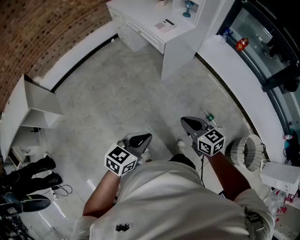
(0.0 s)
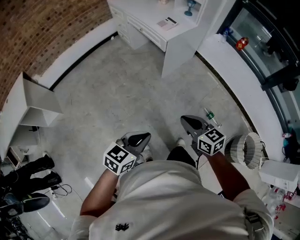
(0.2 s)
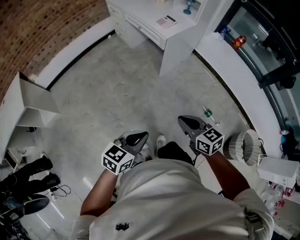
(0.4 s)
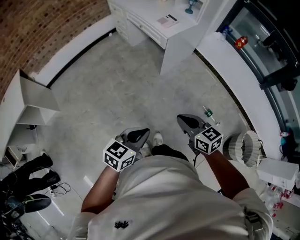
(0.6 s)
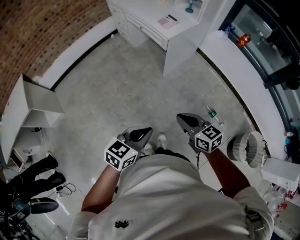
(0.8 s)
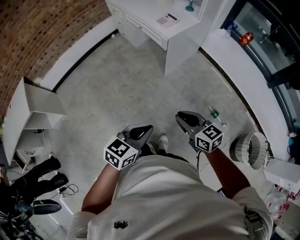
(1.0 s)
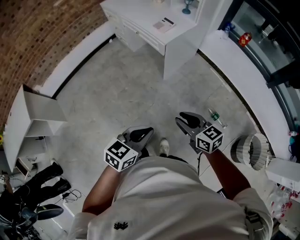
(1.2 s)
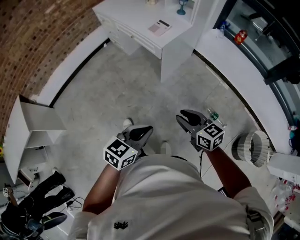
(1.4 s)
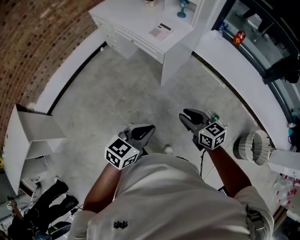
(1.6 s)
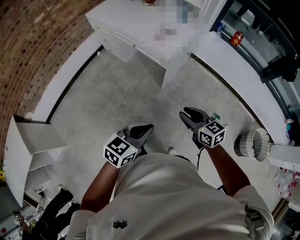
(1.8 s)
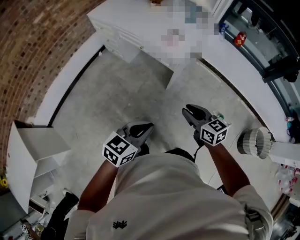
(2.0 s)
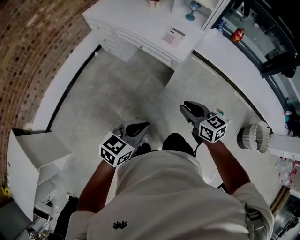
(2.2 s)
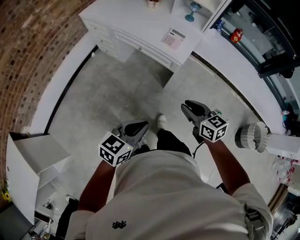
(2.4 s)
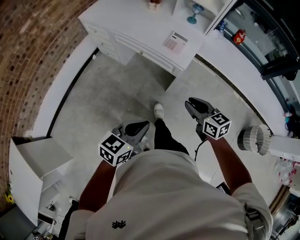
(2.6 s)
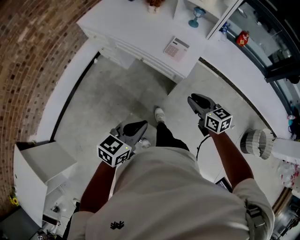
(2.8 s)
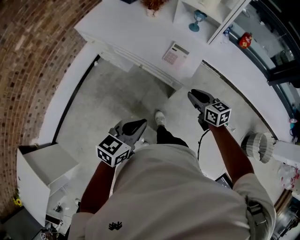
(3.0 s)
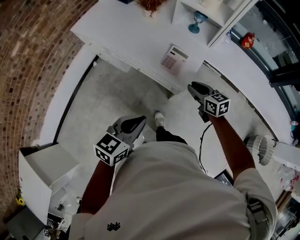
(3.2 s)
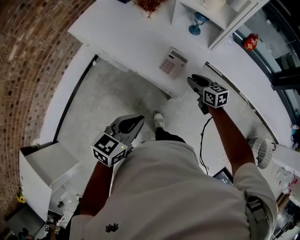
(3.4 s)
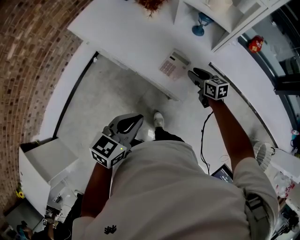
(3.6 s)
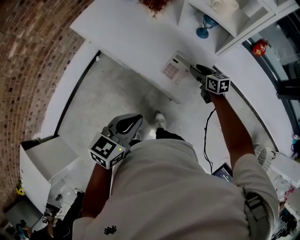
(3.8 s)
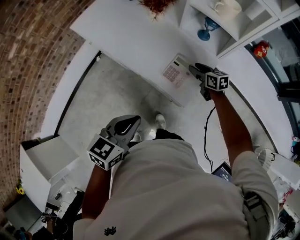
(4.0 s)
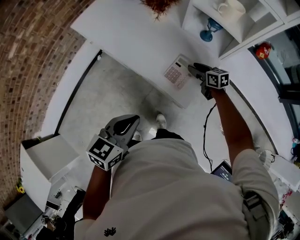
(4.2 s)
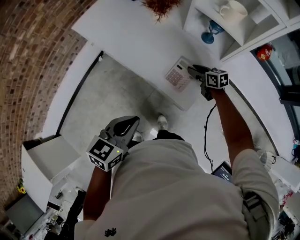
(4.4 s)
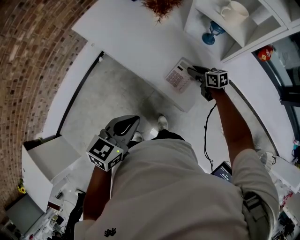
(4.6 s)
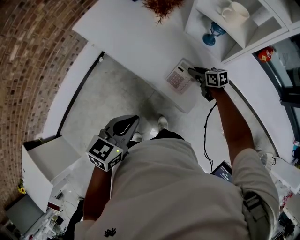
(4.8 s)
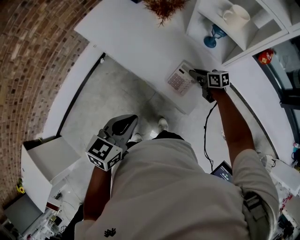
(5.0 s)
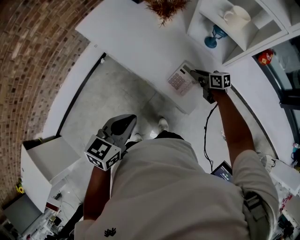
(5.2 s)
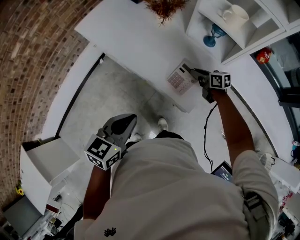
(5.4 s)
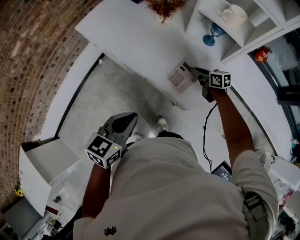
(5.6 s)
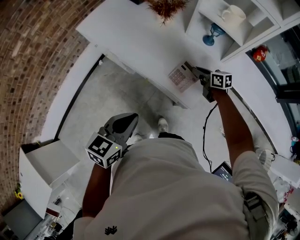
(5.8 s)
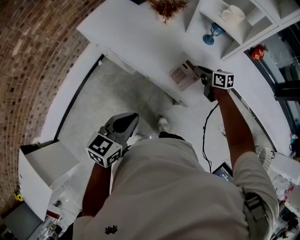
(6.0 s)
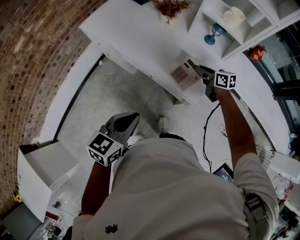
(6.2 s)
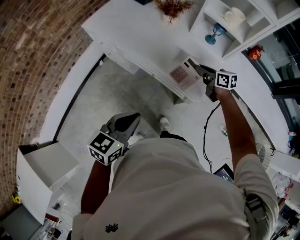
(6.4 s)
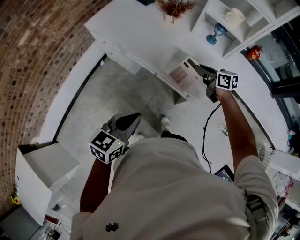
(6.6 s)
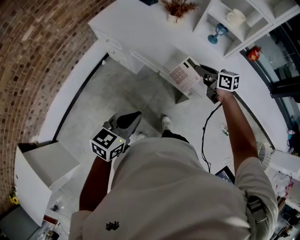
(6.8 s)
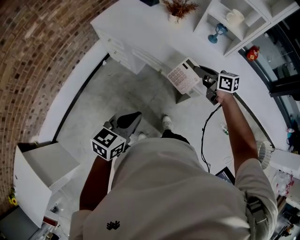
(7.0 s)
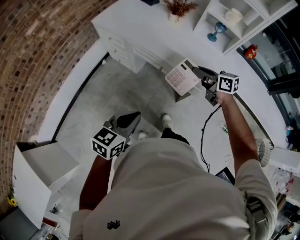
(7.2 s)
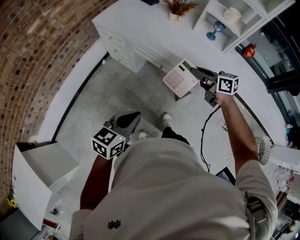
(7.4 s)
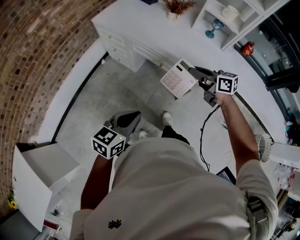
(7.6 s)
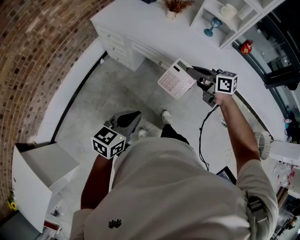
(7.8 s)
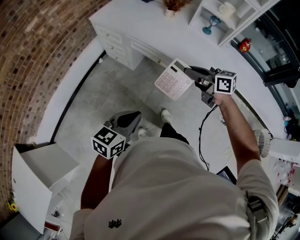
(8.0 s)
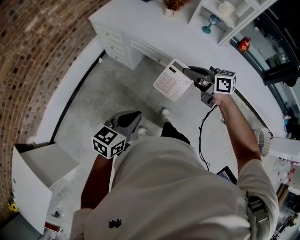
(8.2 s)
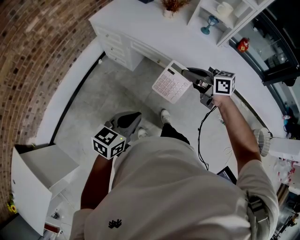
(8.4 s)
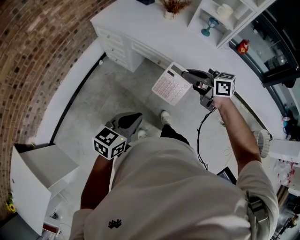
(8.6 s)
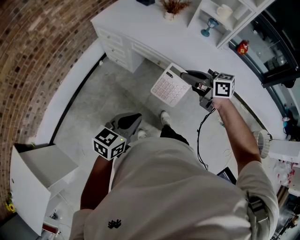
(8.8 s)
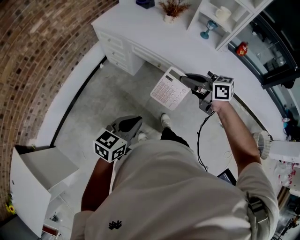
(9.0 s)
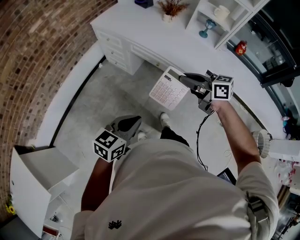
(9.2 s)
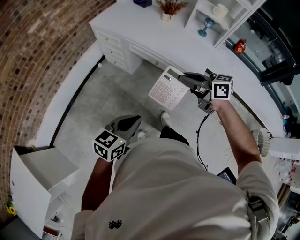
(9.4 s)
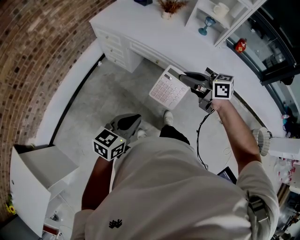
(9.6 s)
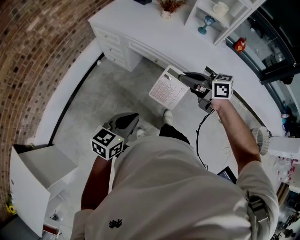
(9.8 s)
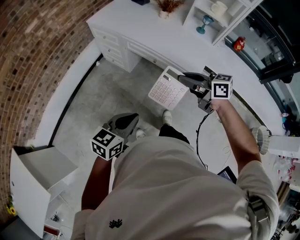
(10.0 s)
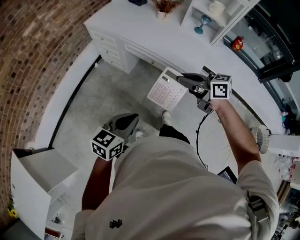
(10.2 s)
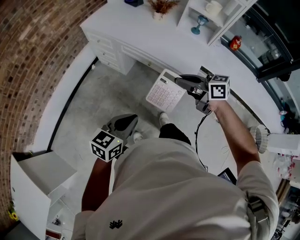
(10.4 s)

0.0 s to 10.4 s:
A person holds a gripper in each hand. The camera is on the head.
0.0 to 1.4 s: Both grippers move forward, some 15 cm. The right gripper opens.
1.4 to 3.0 s: The two grippers travel together, forward and to the left, approximately 40 cm. The right gripper rotates about 20 degrees.
3.0 to 4.4 s: The left gripper heads forward, covering about 20 cm; the right gripper goes approximately 30 cm forward and downward.
4.4 to 6.0 s: The right gripper is displaced upward by roughly 5 cm, and closes its fingers, while the left gripper shifts approximately 5 cm to the left.
6.0 to 7.4 s: The left gripper travels backward and to the left by some 20 cm. Meanwhile the right gripper moves backward, to the left and upward, some 25 cm.
7.4 to 9.0 s: The left gripper travels backward by roughly 5 cm. The right gripper goes some 15 cm backward, to the left and upward.
9.0 to 10.4 s: The grippers move only a little.

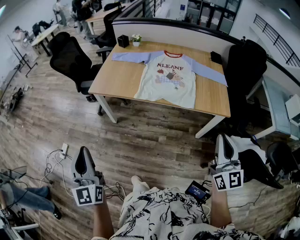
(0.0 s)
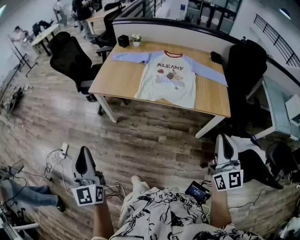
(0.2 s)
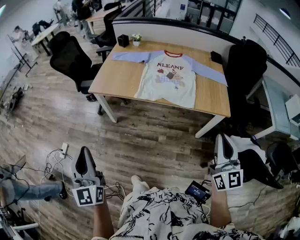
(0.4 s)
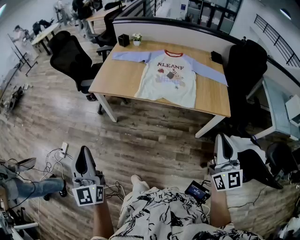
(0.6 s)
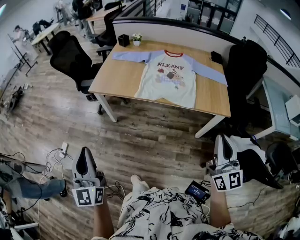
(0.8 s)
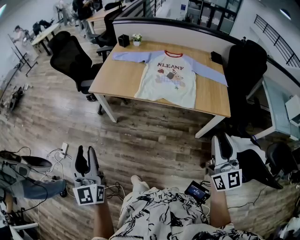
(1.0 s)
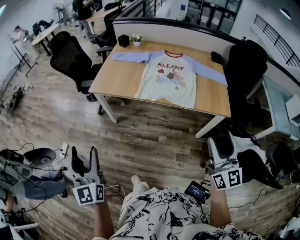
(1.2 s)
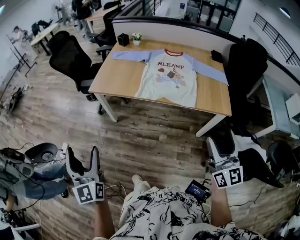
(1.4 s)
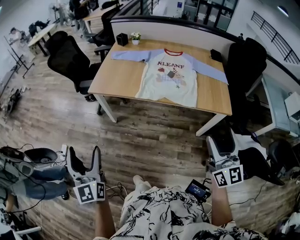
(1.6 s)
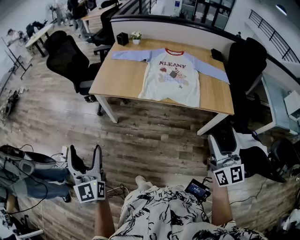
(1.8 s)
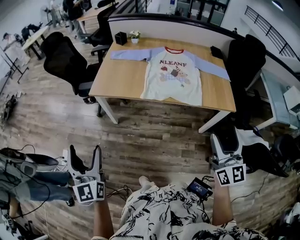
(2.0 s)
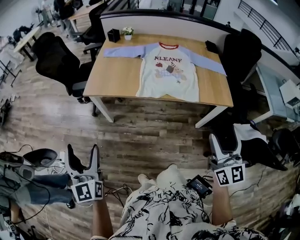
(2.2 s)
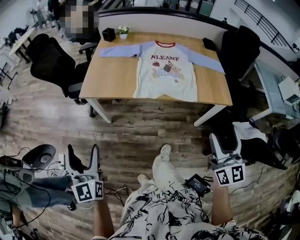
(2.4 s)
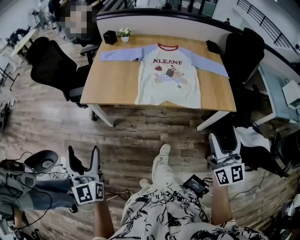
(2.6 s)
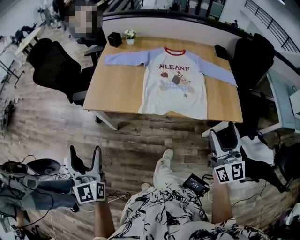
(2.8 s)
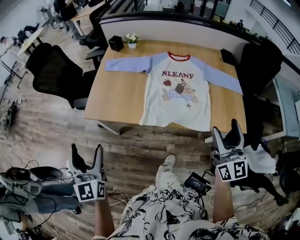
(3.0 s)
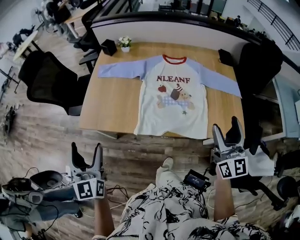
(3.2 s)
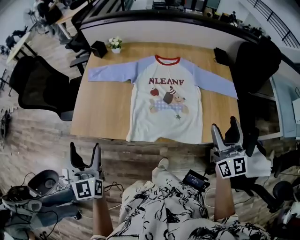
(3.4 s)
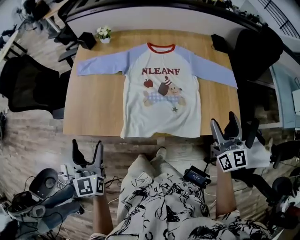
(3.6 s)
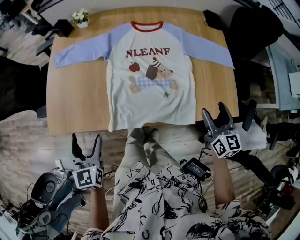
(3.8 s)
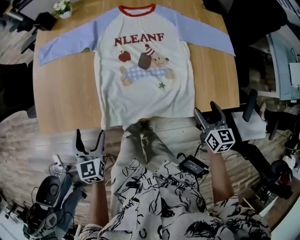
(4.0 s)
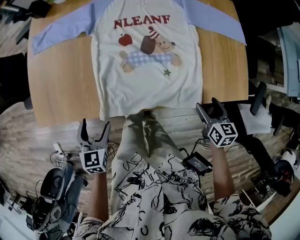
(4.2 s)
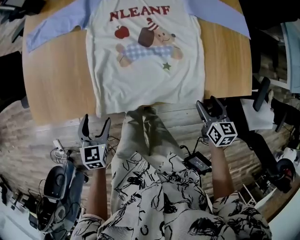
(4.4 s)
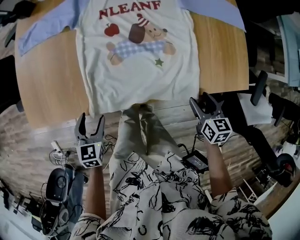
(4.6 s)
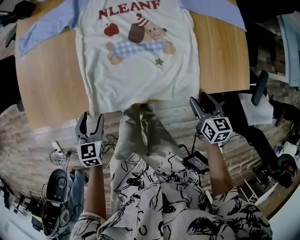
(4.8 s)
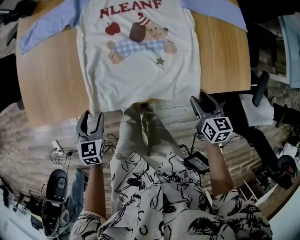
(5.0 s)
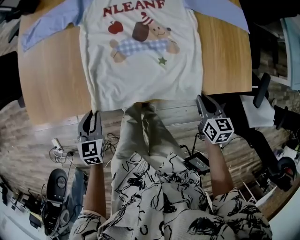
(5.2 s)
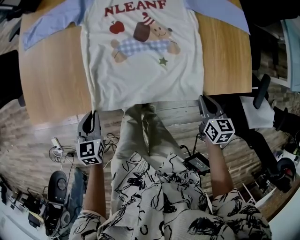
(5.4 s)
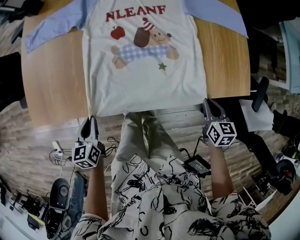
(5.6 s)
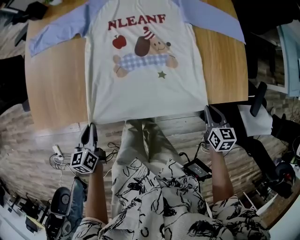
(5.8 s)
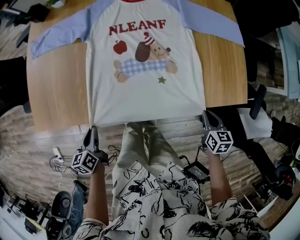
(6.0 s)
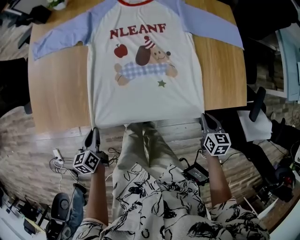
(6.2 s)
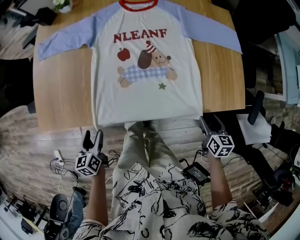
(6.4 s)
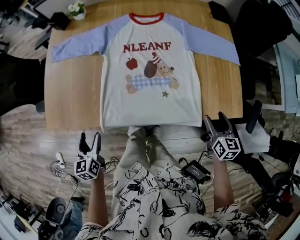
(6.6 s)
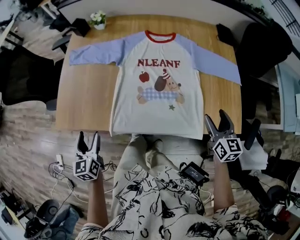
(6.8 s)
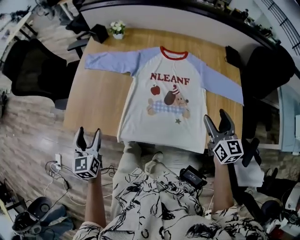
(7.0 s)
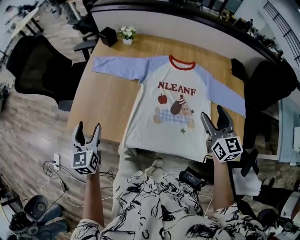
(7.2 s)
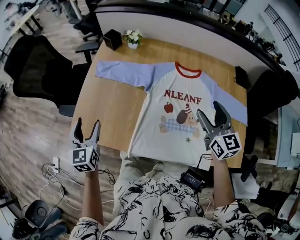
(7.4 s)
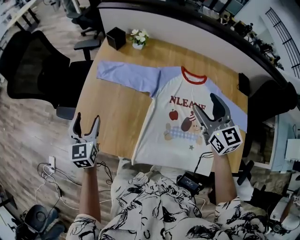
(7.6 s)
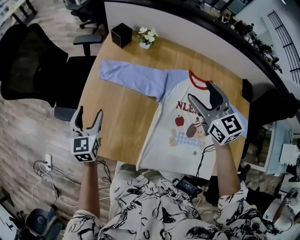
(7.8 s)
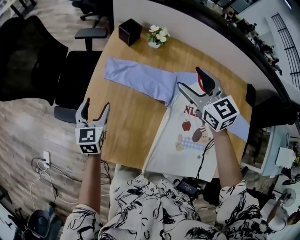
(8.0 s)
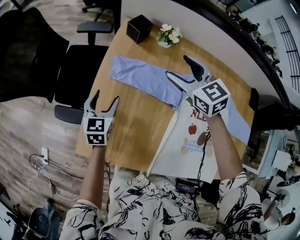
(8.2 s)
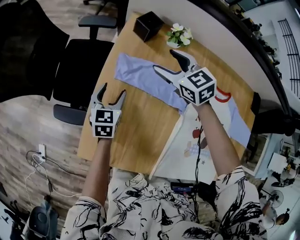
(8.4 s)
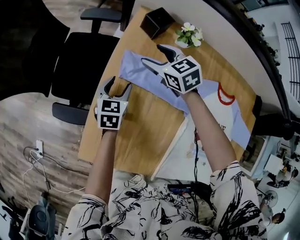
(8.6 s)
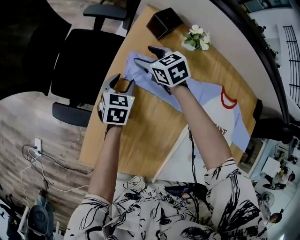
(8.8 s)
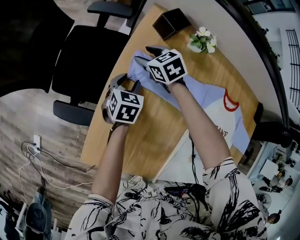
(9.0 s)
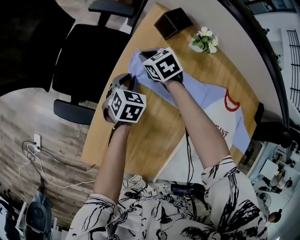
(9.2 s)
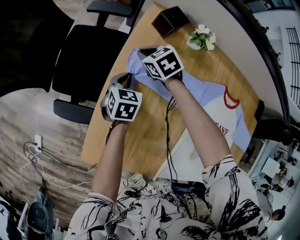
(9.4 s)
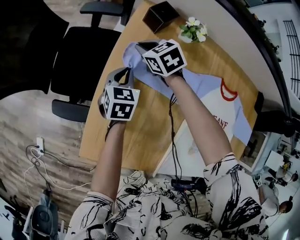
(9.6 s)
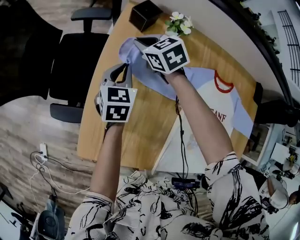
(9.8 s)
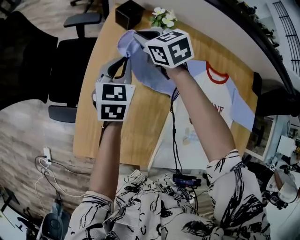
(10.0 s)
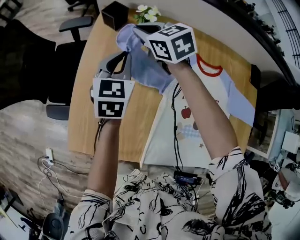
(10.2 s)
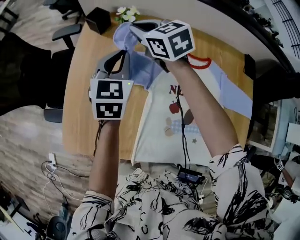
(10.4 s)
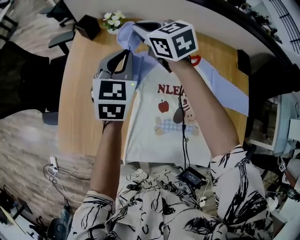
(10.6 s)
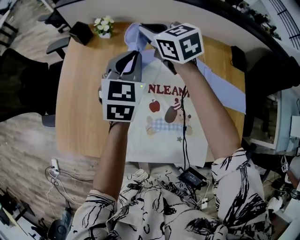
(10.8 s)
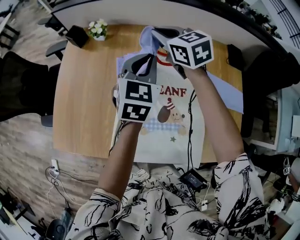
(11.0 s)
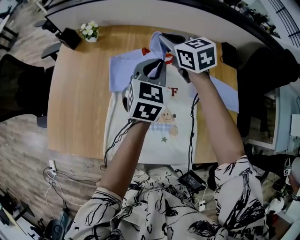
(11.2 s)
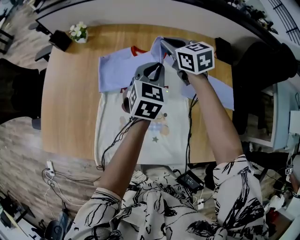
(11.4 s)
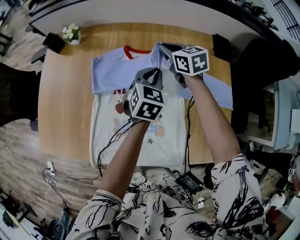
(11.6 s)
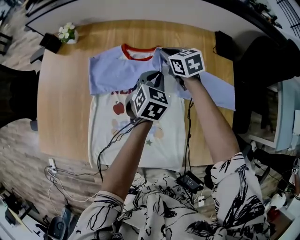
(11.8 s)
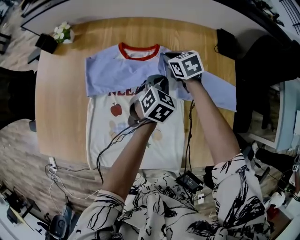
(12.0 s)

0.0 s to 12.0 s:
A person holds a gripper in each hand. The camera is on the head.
0.0 to 1.6 s: The right gripper opens its fingers, while the left gripper opens.
1.6 to 3.0 s: The grippers both shift forward by some 25 cm.
3.0 to 4.4 s: The left gripper heads downward, forward and to the right, covering about 40 cm, and points its fingers some 40 degrees further downward. The right gripper goes some 40 cm downward, and tilts its fingers about 50 degrees downward.
4.4 to 6.0 s: The left gripper turns by about 40 degrees, and closes up. Meanwhile the right gripper closes.
6.0 to 7.6 s: The right gripper ends up approximately 60 cm from where it was, angles its fingers upward, by about 30 degrees, and opens. The left gripper shifts by approximately 35 cm, swivels some 40 degrees, and opens its fingers.
7.6 to 9.0 s: The right gripper shifts some 60 cm forward, to the left and downward, and points its fingers about 40 degrees further downward; the left gripper travels forward and downward by roughly 35 cm, and swivels about 30 degrees.
9.0 to 10.4 s: The grippers both shift upward, to the right and backward by roughly 35 cm. The right gripper rotates approximately 30 degrees, and closes. Meanwhile the left gripper turns by approximately 30 degrees, and closes up.
10.4 to 12.0 s: The two grippers travel together, to the right, roughly 50 cm. The left gripper swivels some 30 degrees. Meanwhile the right gripper heads downward, covering approximately 20 cm, and turns by about 30 degrees.

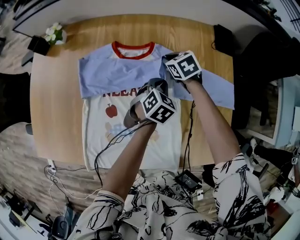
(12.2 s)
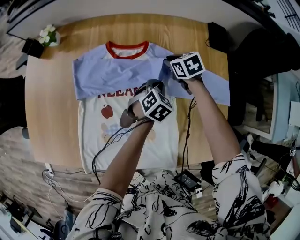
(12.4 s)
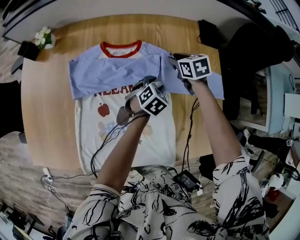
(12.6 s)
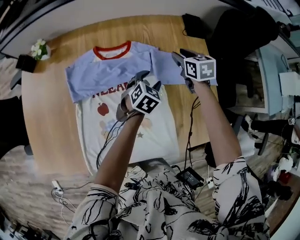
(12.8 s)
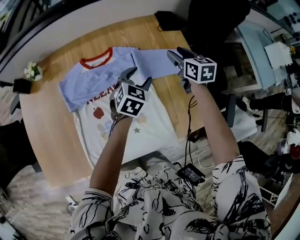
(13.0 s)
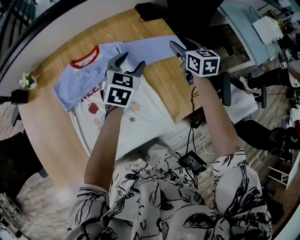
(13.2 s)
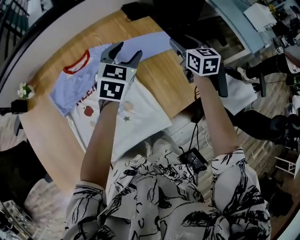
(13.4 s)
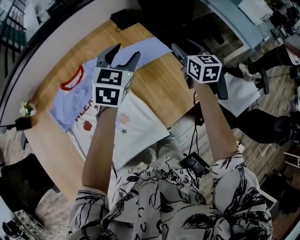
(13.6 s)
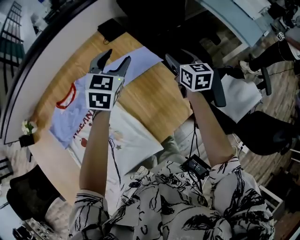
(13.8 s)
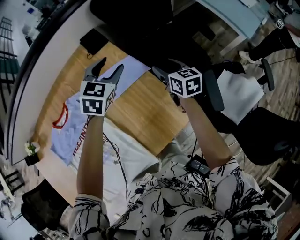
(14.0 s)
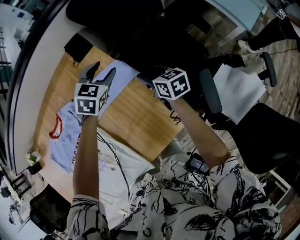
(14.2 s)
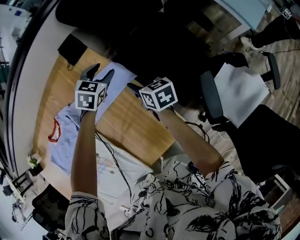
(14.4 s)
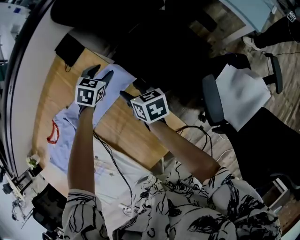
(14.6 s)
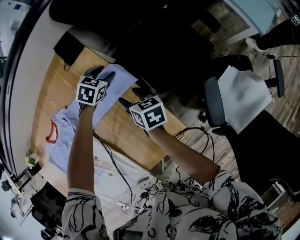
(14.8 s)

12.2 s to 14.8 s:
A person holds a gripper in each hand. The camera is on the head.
12.2 to 13.4 s: The right gripper ends up roughly 40 cm from where it was, tips its fingers upward by approximately 30 degrees, and opens its fingers. Meanwhile the left gripper goes about 25 cm upward, swivels roughly 30 degrees, and opens its fingers.
13.4 to 14.8 s: The right gripper moves downward, some 25 cm, and rotates some 40 degrees, while the left gripper moves downward, forward and to the right, approximately 40 cm, and tips its fingers downward by approximately 30 degrees.
